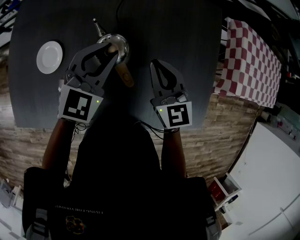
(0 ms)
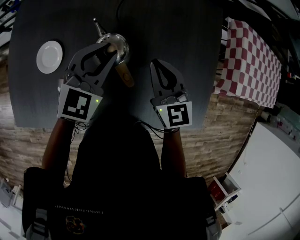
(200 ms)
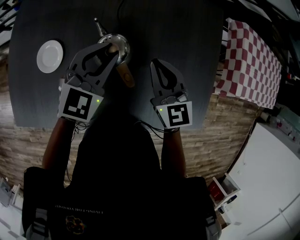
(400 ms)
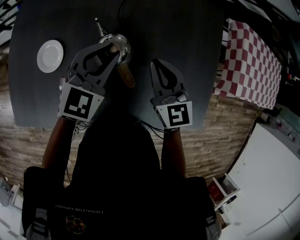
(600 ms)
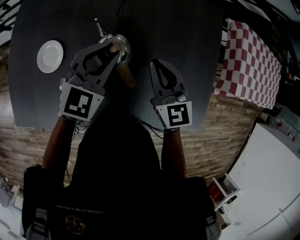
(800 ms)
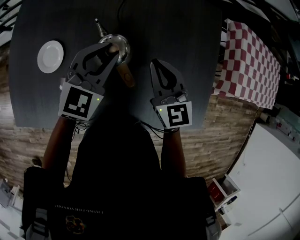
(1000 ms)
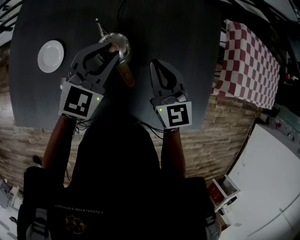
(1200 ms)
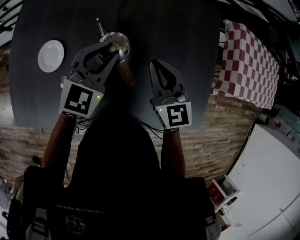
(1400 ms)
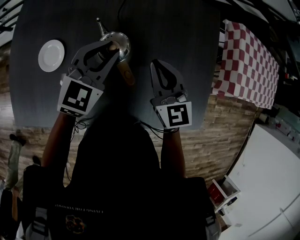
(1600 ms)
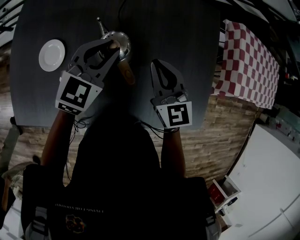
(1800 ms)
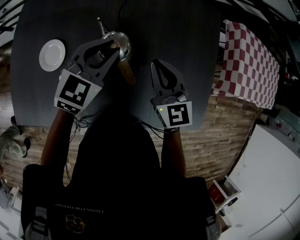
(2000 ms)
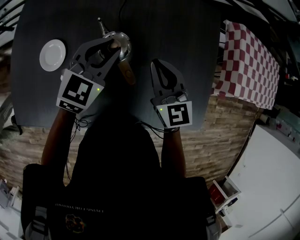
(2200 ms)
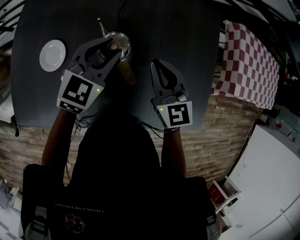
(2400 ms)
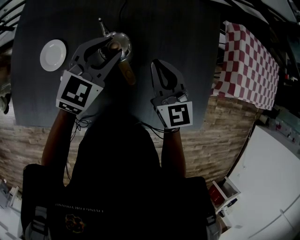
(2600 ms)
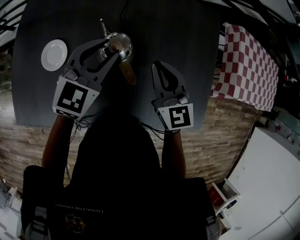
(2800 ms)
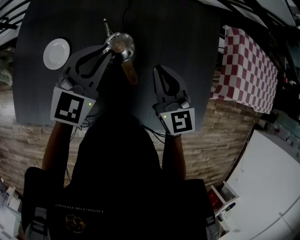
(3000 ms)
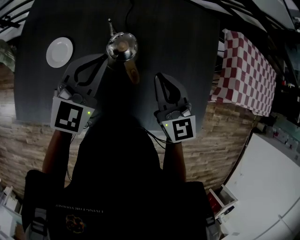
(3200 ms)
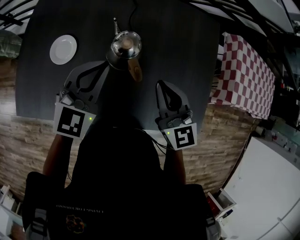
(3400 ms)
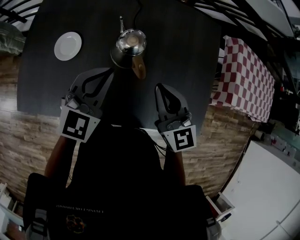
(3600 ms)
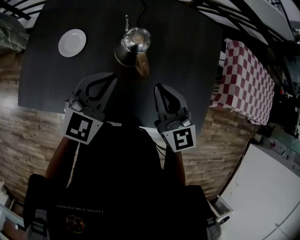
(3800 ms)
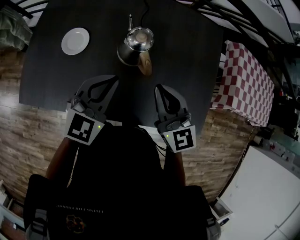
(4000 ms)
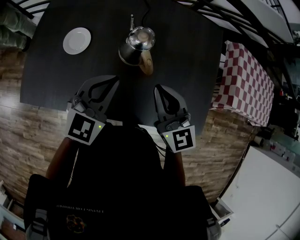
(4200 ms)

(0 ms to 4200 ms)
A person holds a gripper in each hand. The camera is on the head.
0 ms - 2800 ms: The grippers make only small movements.
2800 ms - 4200 ms: The left gripper goes roughly 15 cm backward, and closes its fingers; the right gripper shifts about 15 cm backward and upward.

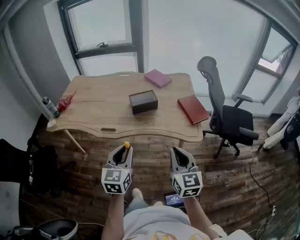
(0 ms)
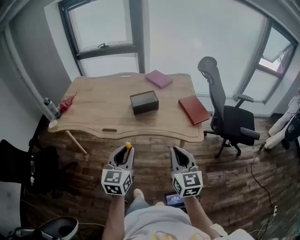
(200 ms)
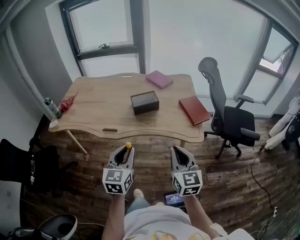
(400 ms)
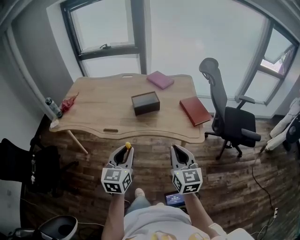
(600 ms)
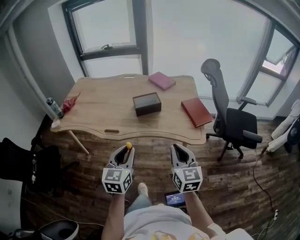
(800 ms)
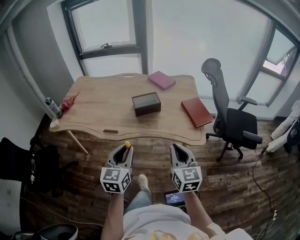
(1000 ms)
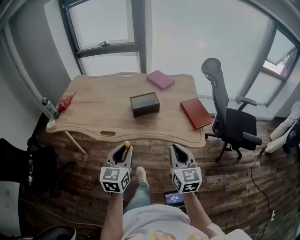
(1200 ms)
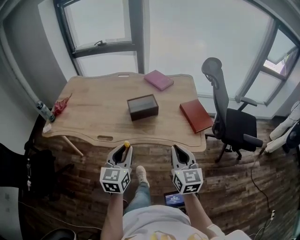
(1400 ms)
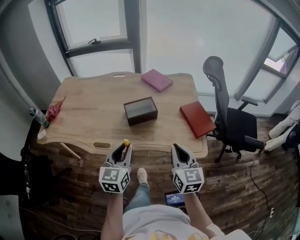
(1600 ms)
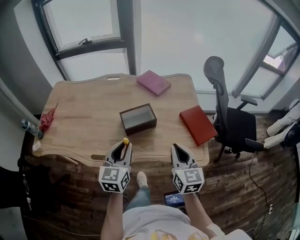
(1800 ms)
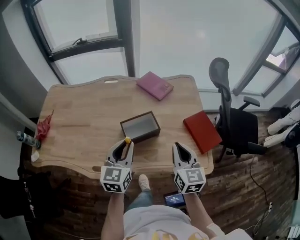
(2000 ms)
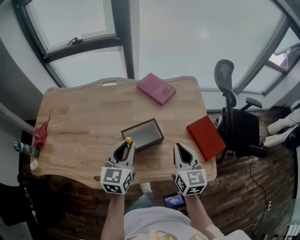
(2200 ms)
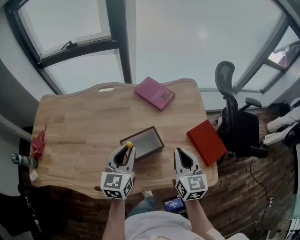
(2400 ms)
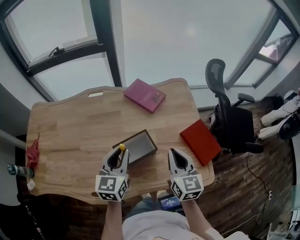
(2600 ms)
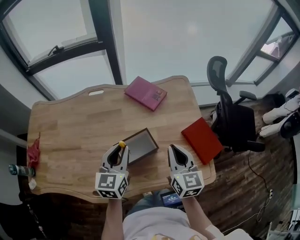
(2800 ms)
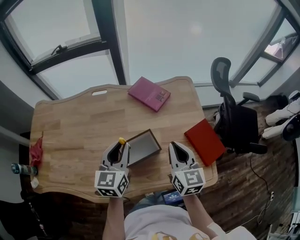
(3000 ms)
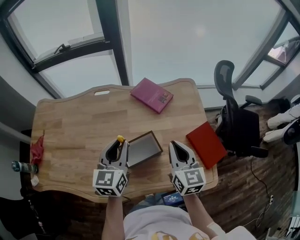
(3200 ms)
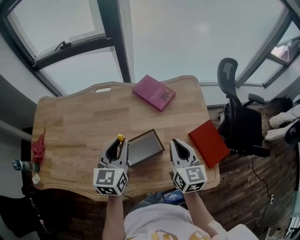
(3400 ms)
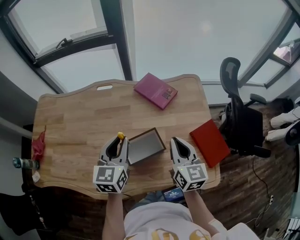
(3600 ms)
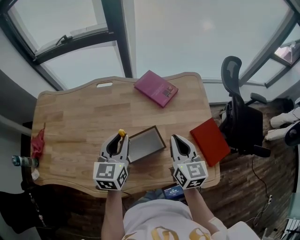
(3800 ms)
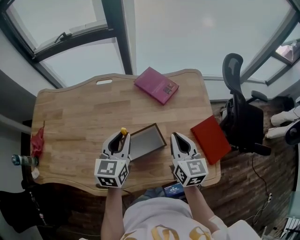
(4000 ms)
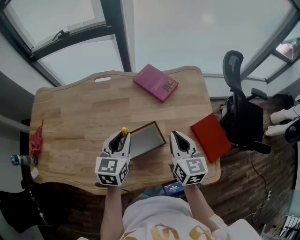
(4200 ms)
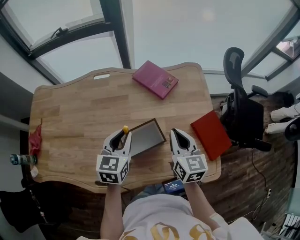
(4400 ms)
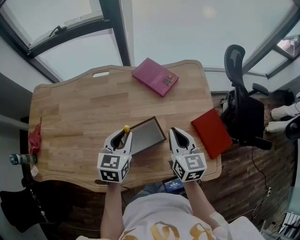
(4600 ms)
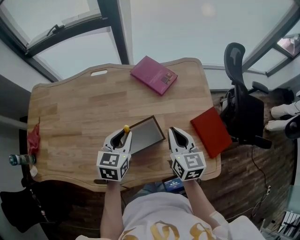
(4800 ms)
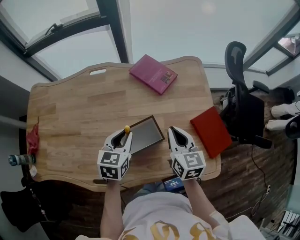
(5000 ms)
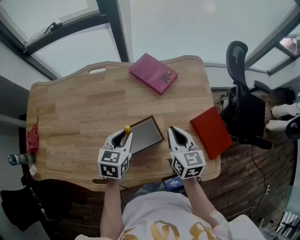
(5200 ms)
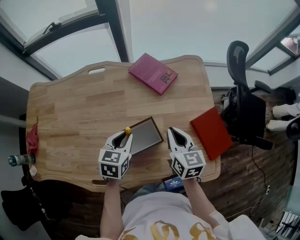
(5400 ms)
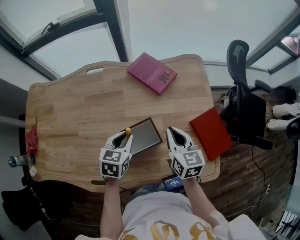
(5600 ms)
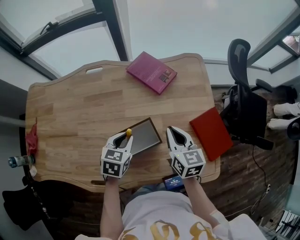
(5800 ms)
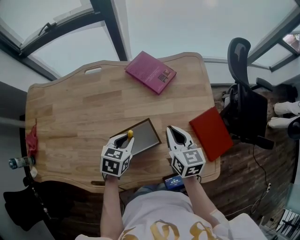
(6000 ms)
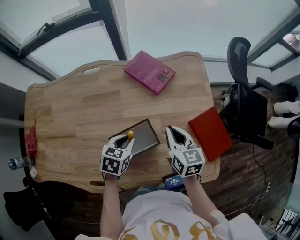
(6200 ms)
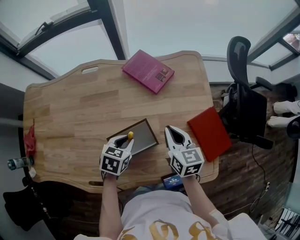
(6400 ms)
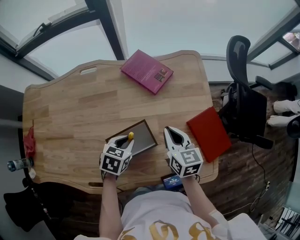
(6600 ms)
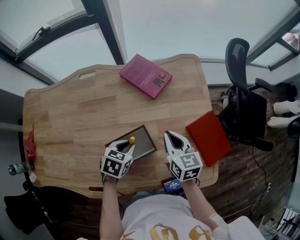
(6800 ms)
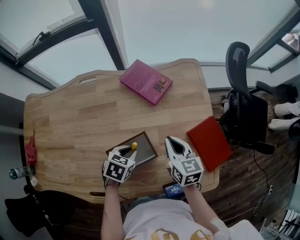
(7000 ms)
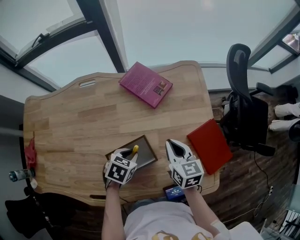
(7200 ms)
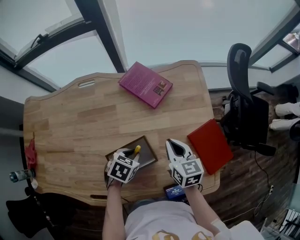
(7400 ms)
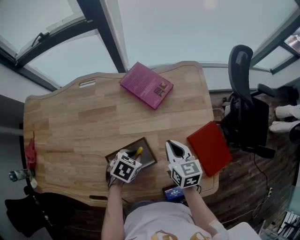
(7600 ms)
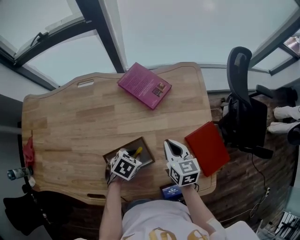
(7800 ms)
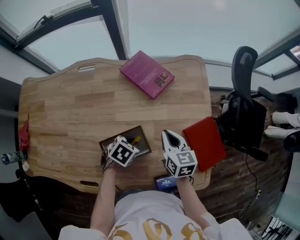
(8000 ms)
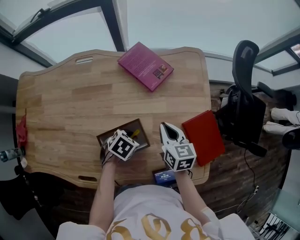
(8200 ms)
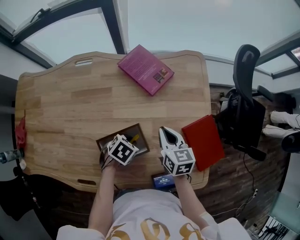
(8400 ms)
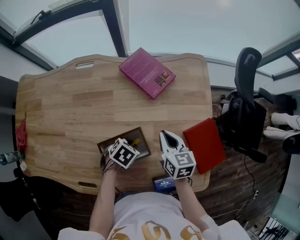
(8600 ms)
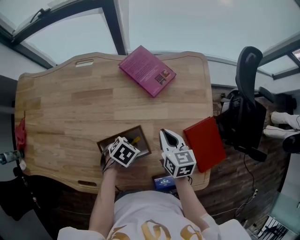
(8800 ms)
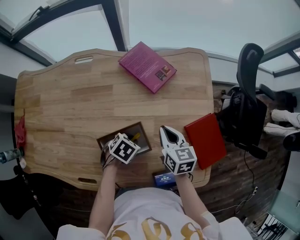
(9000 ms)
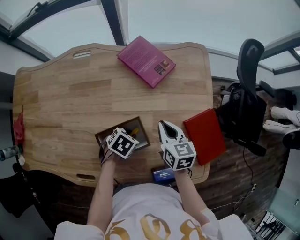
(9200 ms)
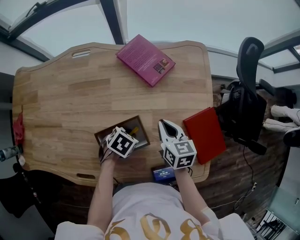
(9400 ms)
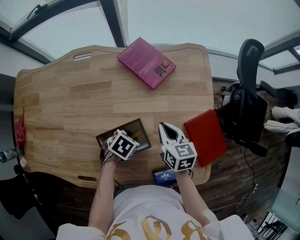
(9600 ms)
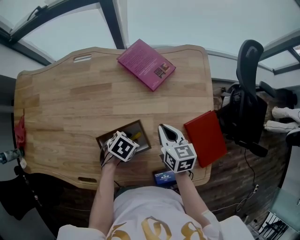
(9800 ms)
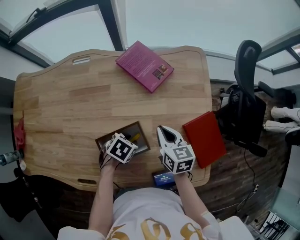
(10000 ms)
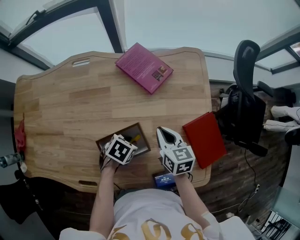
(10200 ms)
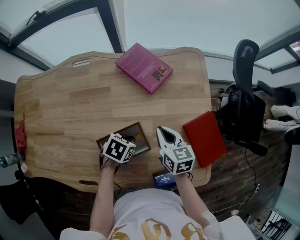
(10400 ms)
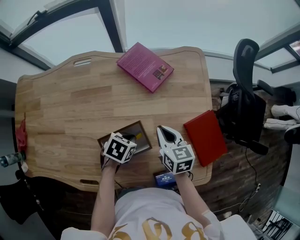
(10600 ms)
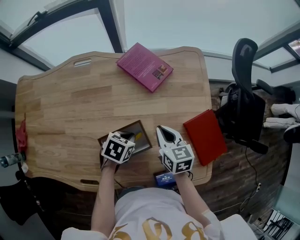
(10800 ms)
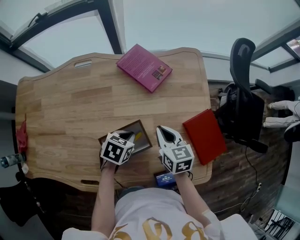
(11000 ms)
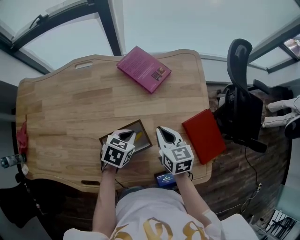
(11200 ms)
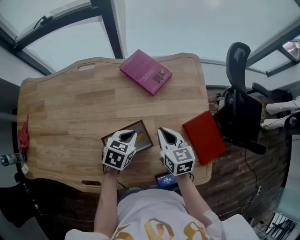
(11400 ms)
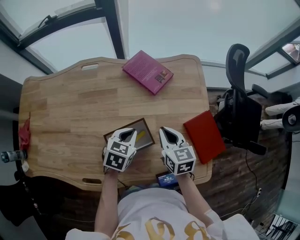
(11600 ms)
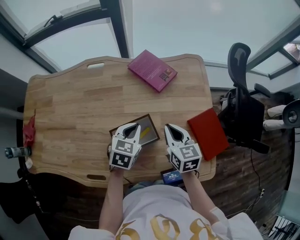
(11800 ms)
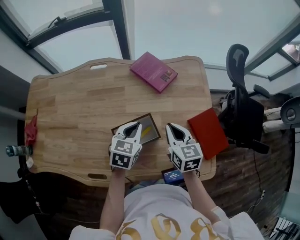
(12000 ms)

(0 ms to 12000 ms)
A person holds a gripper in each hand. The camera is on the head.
0 ms - 1600 ms: Both grippers travel together forward, roughly 15 cm.
1600 ms - 3000 ms: The grippers both shift forward by roughly 30 cm.
3000 ms - 4400 ms: The left gripper travels downward by about 5 cm; the right gripper changes place by roughly 5 cm.
4400 ms - 6000 ms: The left gripper moves downward, about 10 cm, and swivels approximately 30 degrees. The right gripper is displaced downward by some 5 cm.
6000 ms - 7600 ms: The left gripper moves downward, approximately 5 cm, and changes its angle by about 20 degrees. Meanwhile the right gripper shifts by about 5 cm.
7600 ms - 10400 ms: The grippers move only a little.
10400 ms - 12000 ms: The left gripper is displaced upward by roughly 15 cm, and changes its angle by some 40 degrees, while the right gripper travels upward by roughly 10 cm.

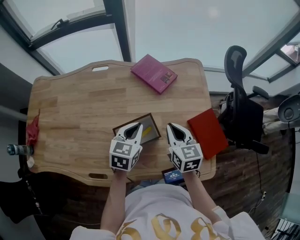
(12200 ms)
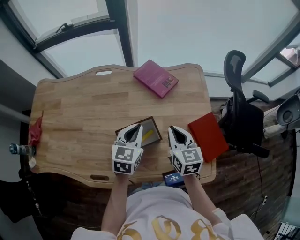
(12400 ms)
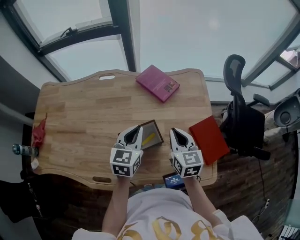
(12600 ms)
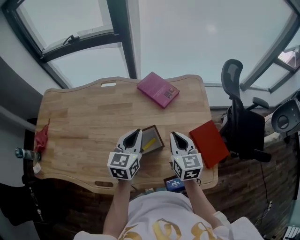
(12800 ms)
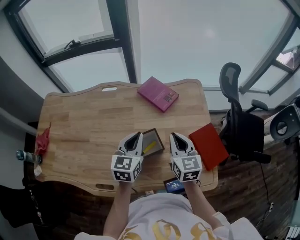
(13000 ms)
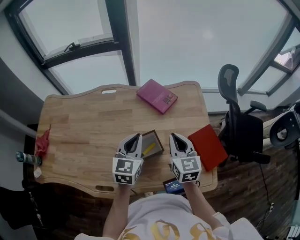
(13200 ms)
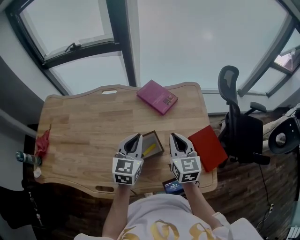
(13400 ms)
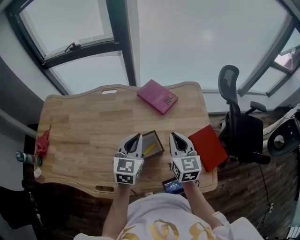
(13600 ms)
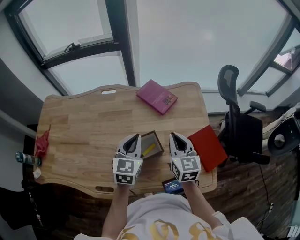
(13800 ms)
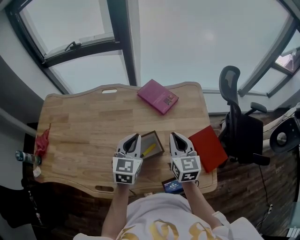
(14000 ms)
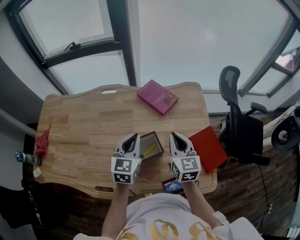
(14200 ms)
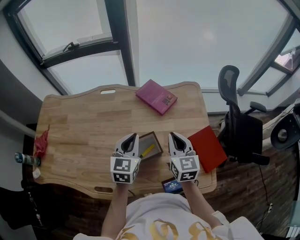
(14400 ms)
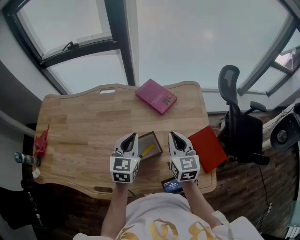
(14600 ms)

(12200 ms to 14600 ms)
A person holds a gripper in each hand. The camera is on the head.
12200 ms - 13400 ms: Both grippers travel together upward, about 10 cm.
13400 ms - 14600 ms: The grippers move only a little.

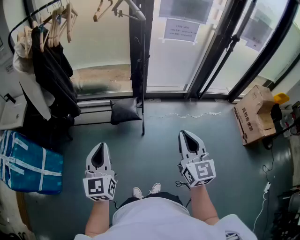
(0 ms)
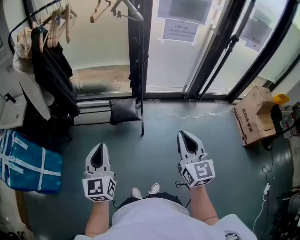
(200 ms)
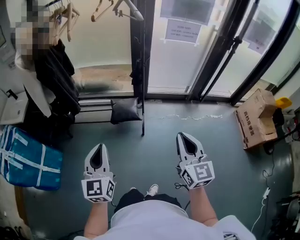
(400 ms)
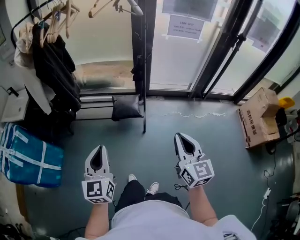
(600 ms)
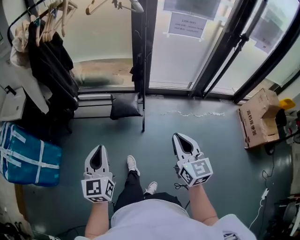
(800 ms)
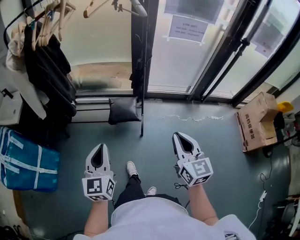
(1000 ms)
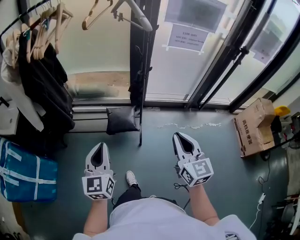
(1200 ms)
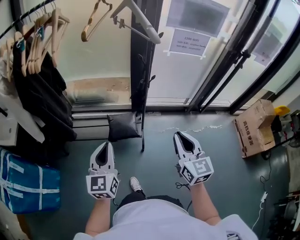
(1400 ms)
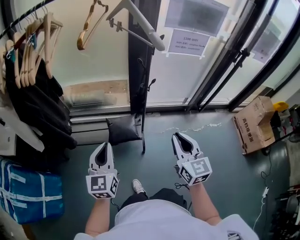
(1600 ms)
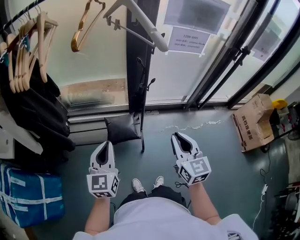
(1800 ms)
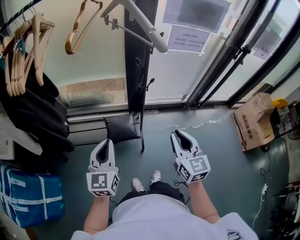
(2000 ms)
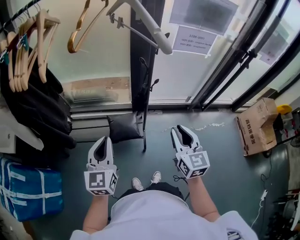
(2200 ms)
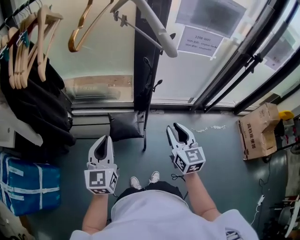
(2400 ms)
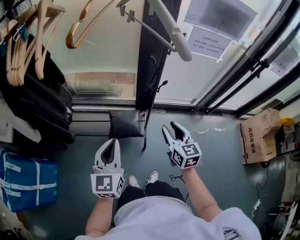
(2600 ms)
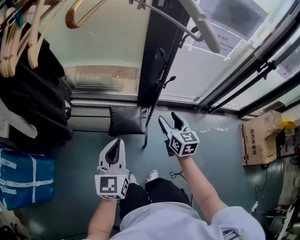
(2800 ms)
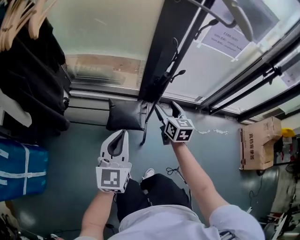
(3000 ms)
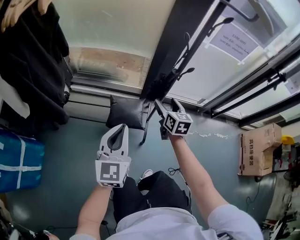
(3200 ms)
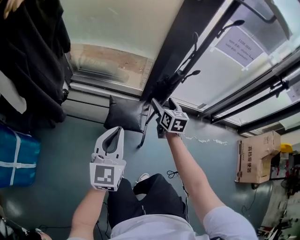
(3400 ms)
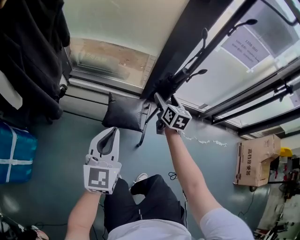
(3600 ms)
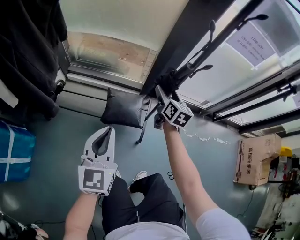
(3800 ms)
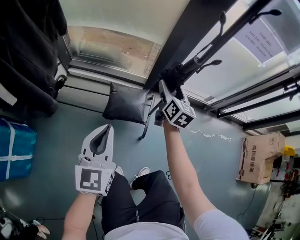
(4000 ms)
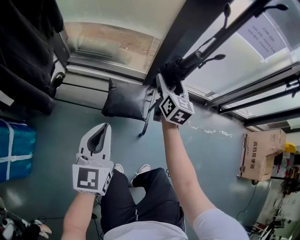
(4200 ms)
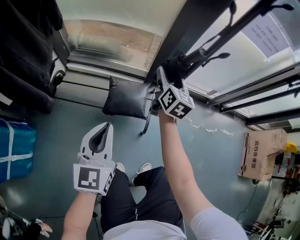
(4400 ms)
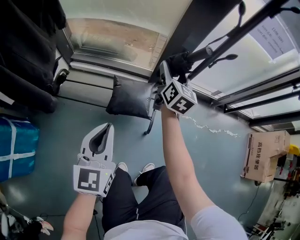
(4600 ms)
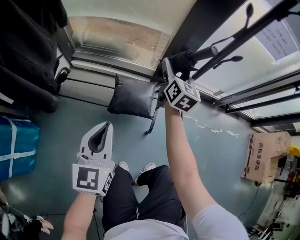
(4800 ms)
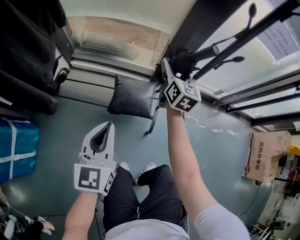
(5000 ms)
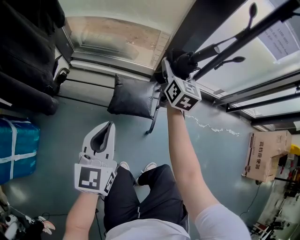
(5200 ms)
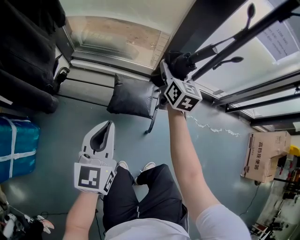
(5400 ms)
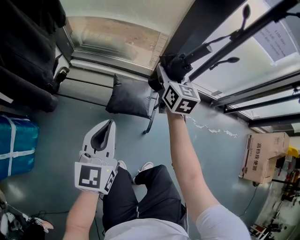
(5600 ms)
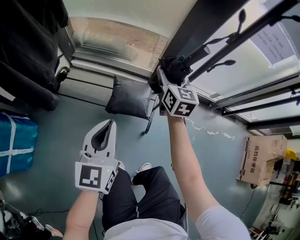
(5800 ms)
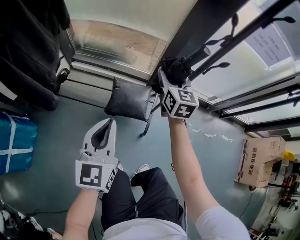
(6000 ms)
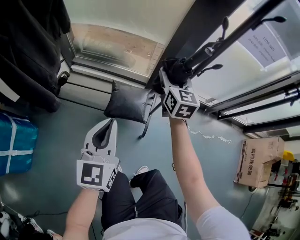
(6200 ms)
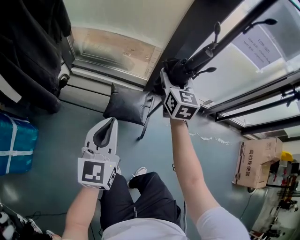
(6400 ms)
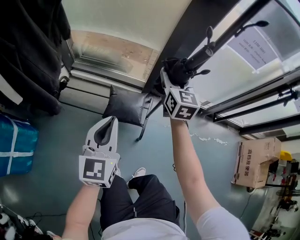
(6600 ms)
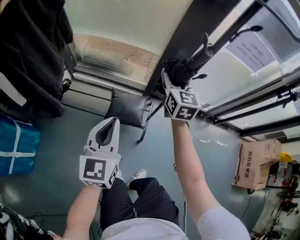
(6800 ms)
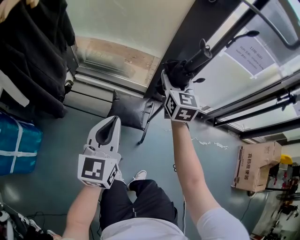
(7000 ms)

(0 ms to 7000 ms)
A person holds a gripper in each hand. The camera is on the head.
0 ms - 1400 ms: The grippers both shift forward by some 20 cm.
1400 ms - 2800 ms: The right gripper shifts roughly 25 cm forward and downward, and opens. The left gripper goes approximately 10 cm forward and downward.
2800 ms - 4200 ms: The right gripper shifts roughly 20 cm forward and downward; the left gripper travels downward by some 15 cm.
4200 ms - 5600 ms: The right gripper changes place by about 5 cm.
5600 ms - 7000 ms: The two grippers go about 15 cm upward.
